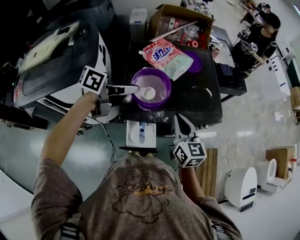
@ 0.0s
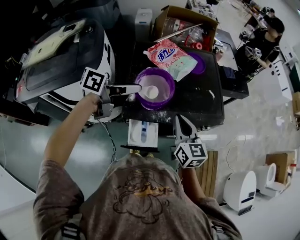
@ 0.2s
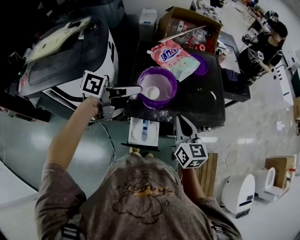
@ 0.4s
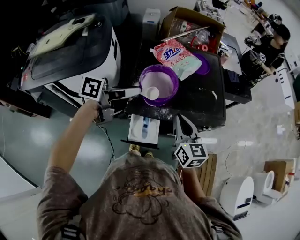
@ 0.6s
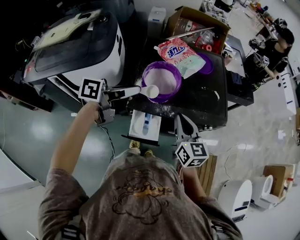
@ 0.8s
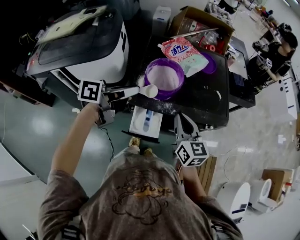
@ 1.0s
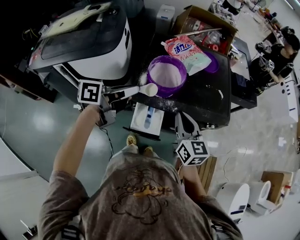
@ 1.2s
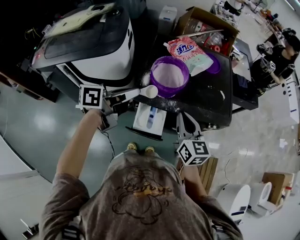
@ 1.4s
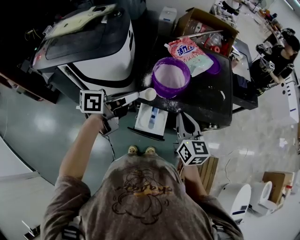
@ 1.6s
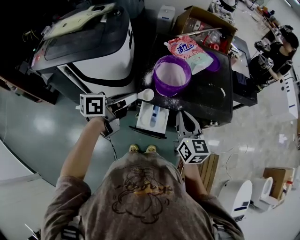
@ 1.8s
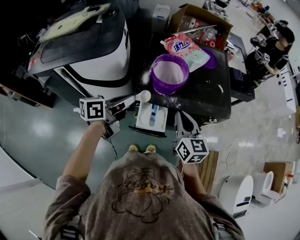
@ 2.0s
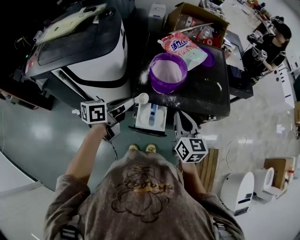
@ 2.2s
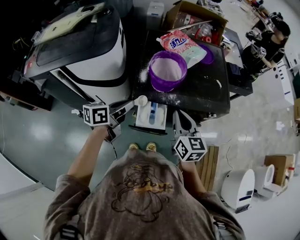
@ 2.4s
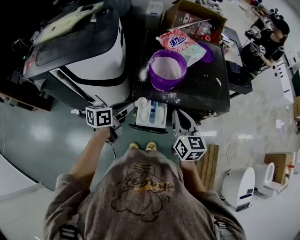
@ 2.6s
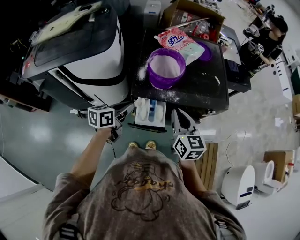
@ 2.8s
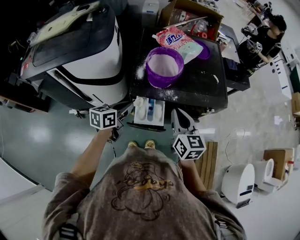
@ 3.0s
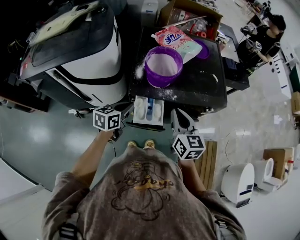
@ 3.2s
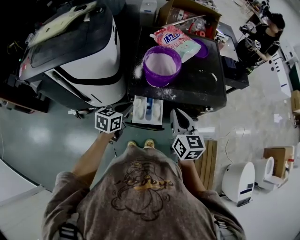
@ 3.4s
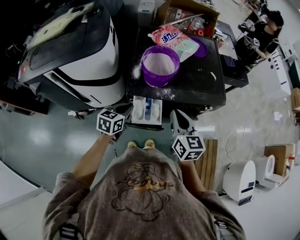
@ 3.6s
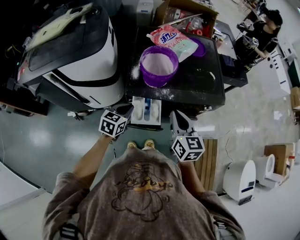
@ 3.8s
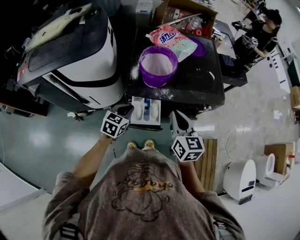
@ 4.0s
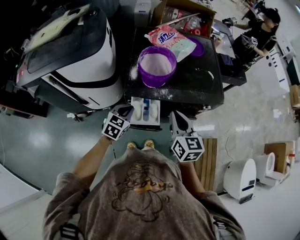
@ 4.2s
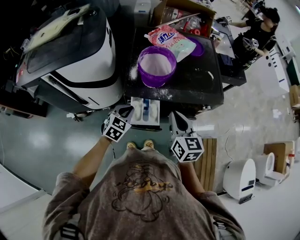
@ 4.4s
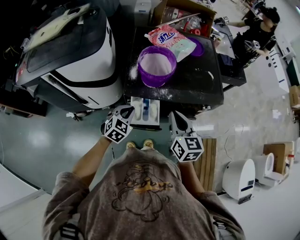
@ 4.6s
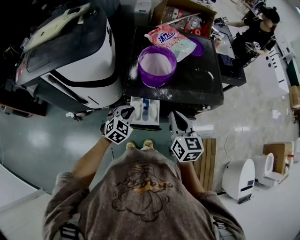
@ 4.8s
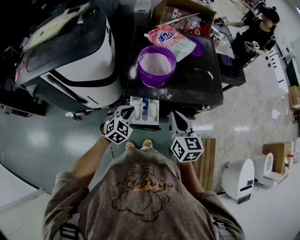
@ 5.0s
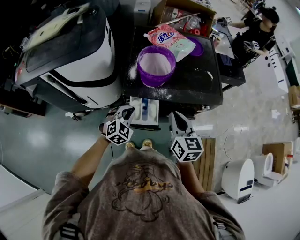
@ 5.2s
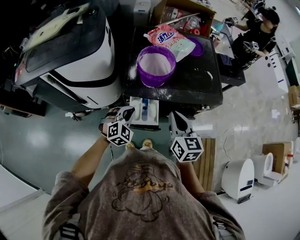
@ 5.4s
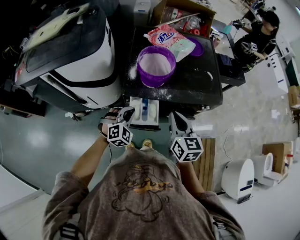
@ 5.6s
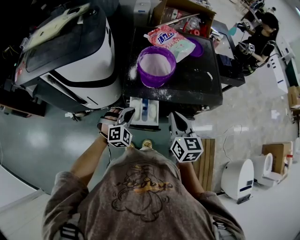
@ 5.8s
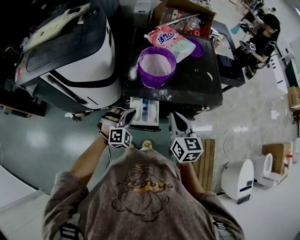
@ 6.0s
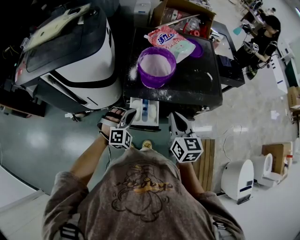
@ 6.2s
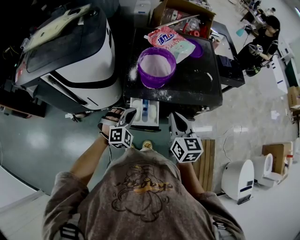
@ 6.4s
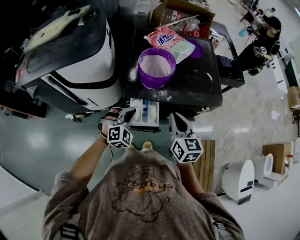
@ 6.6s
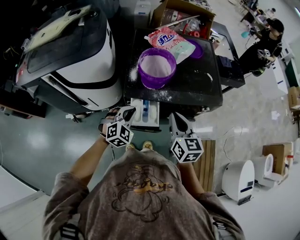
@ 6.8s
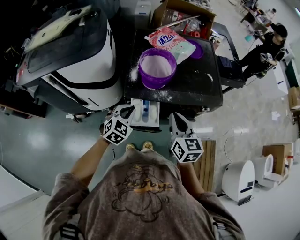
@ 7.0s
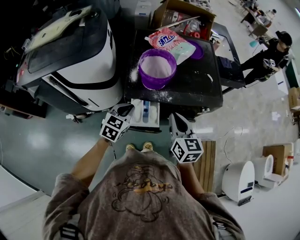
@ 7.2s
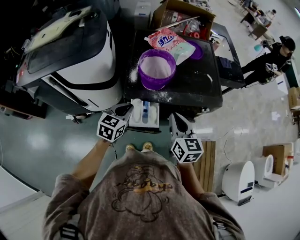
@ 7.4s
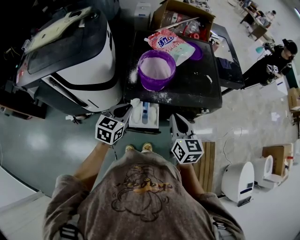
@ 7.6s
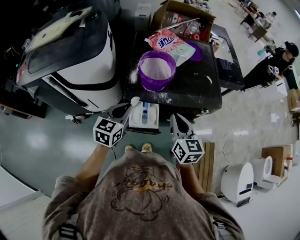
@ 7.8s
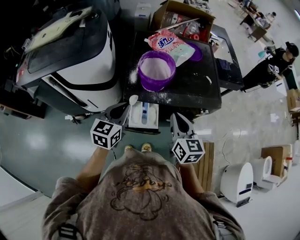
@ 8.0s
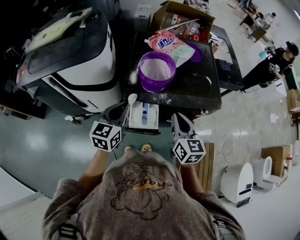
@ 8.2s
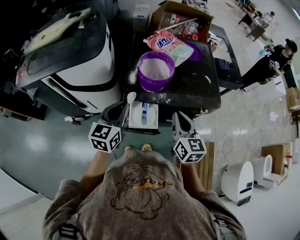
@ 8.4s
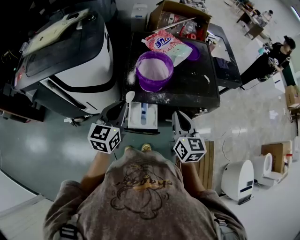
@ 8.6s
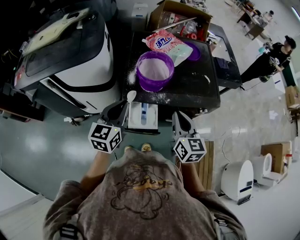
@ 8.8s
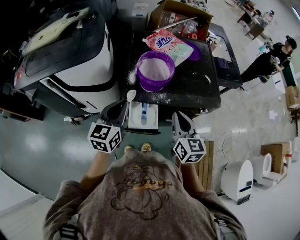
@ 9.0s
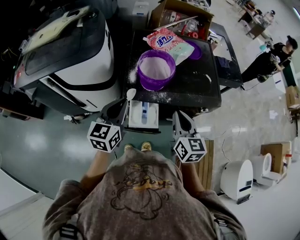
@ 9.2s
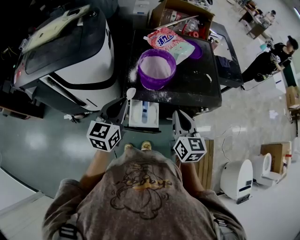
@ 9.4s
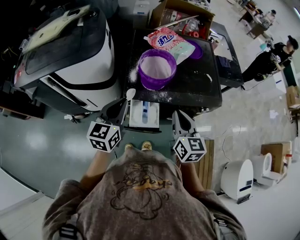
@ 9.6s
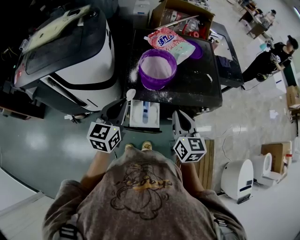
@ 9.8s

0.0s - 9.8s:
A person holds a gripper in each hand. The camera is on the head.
0.0s - 1.4s: The left gripper travels backward by roughly 10 cm, and changes its angle by some 30 degrees. Meanwhile the right gripper is displaced backward by approximately 5 cm.
1.4s - 2.8s: The left gripper is displaced downward by approximately 15 cm.
2.8s - 4.2s: The left gripper moves downward, about 5 cm, and swivels approximately 40 degrees.
4.2s - 5.6s: The left gripper twists approximately 40 degrees clockwise, seen from behind.
5.6s - 7.0s: The left gripper changes its angle by some 20 degrees.
7.0s - 8.4s: The left gripper moves upward, some 10 cm, and turns by some 40 degrees.
8.4s - 9.8s: Both grippers stay about where they are.

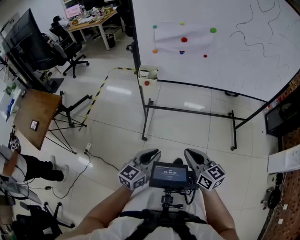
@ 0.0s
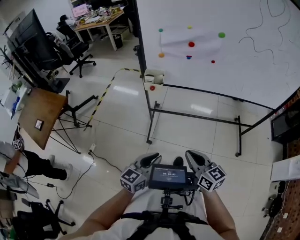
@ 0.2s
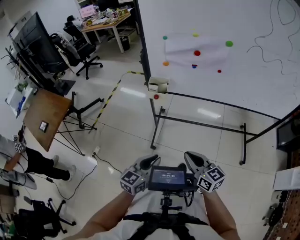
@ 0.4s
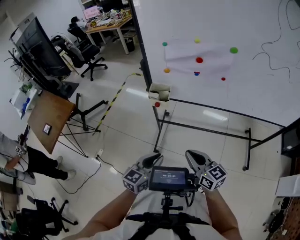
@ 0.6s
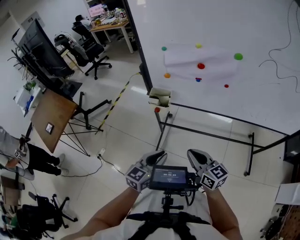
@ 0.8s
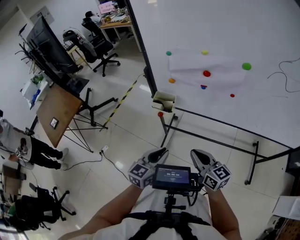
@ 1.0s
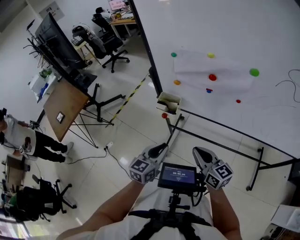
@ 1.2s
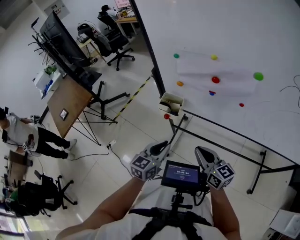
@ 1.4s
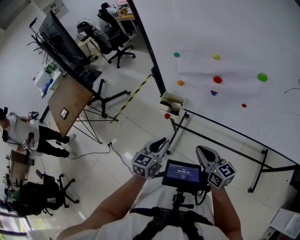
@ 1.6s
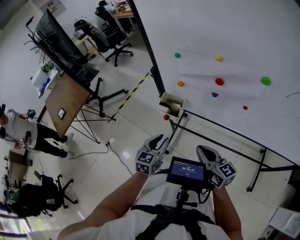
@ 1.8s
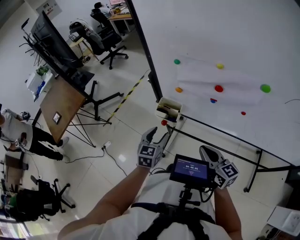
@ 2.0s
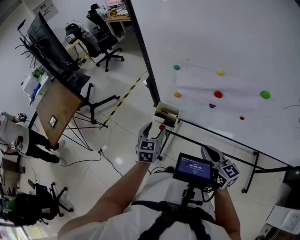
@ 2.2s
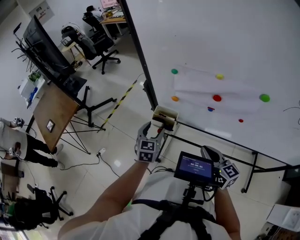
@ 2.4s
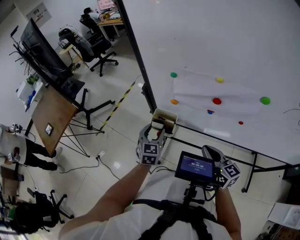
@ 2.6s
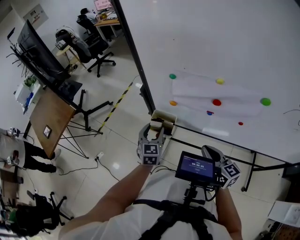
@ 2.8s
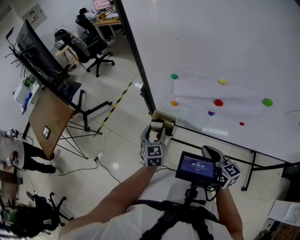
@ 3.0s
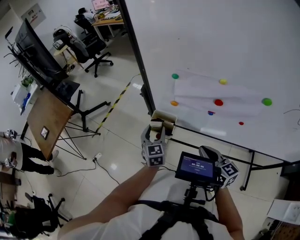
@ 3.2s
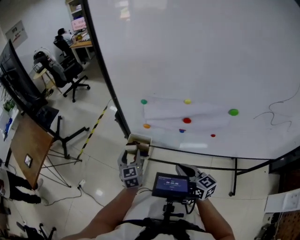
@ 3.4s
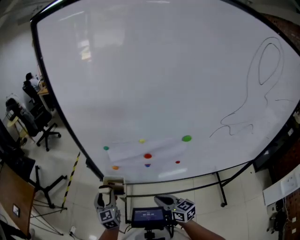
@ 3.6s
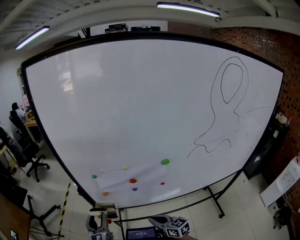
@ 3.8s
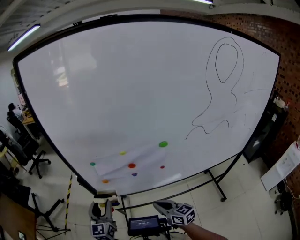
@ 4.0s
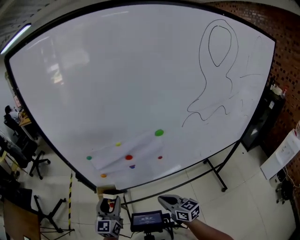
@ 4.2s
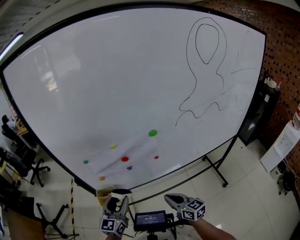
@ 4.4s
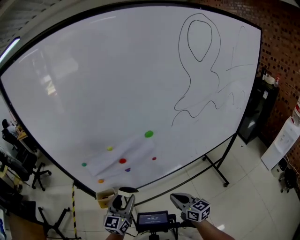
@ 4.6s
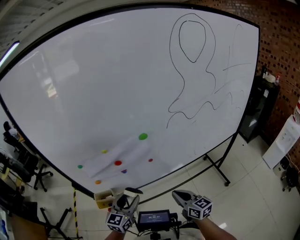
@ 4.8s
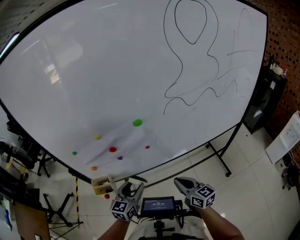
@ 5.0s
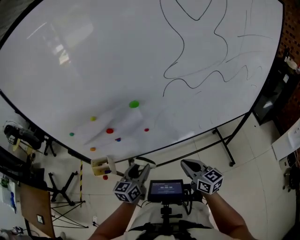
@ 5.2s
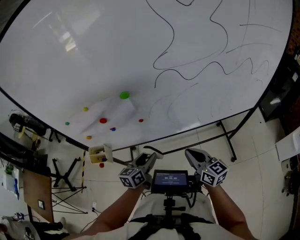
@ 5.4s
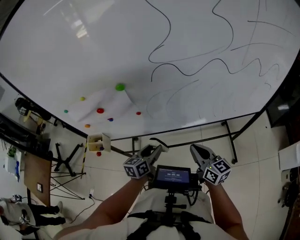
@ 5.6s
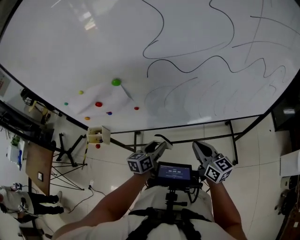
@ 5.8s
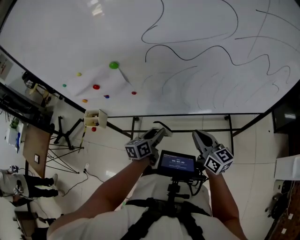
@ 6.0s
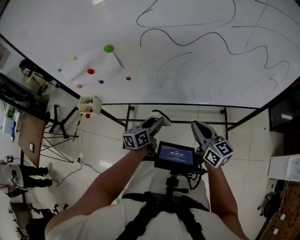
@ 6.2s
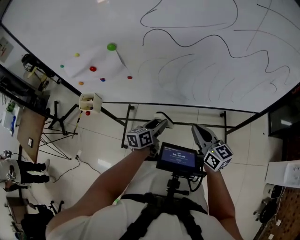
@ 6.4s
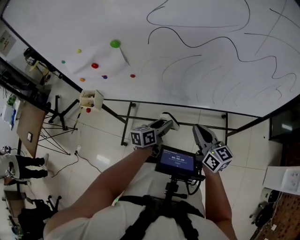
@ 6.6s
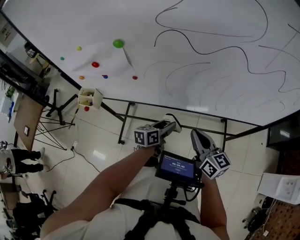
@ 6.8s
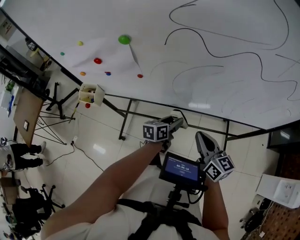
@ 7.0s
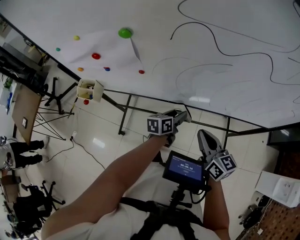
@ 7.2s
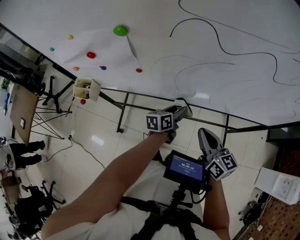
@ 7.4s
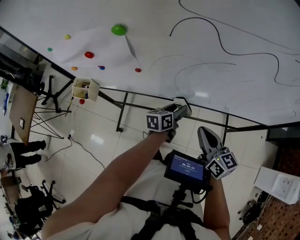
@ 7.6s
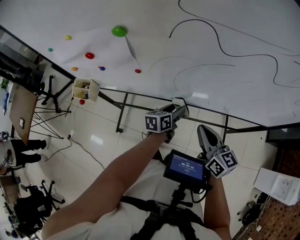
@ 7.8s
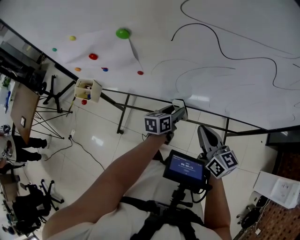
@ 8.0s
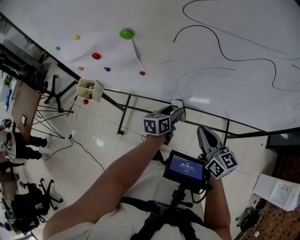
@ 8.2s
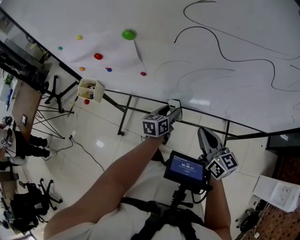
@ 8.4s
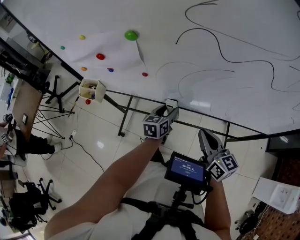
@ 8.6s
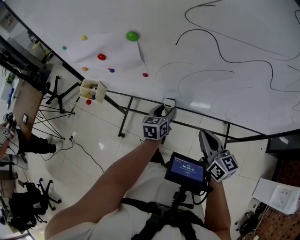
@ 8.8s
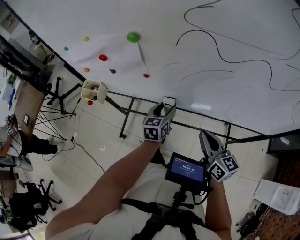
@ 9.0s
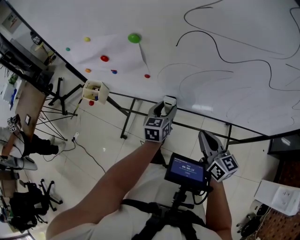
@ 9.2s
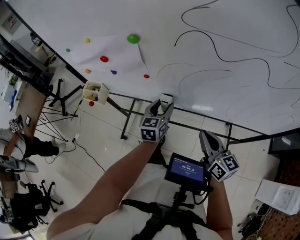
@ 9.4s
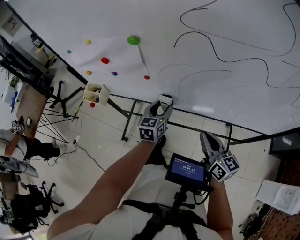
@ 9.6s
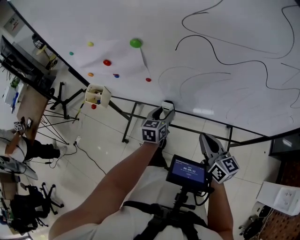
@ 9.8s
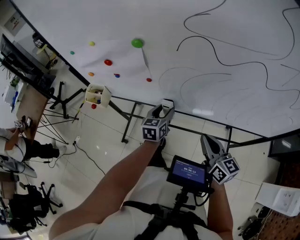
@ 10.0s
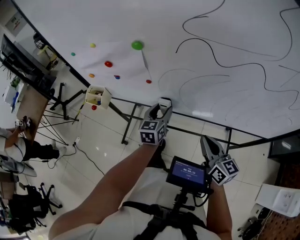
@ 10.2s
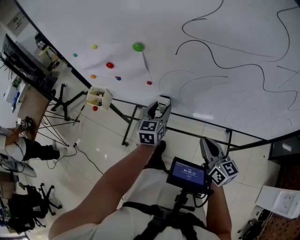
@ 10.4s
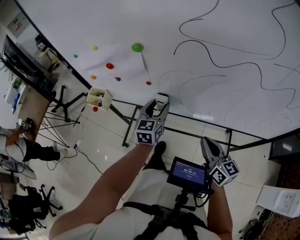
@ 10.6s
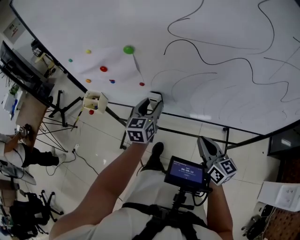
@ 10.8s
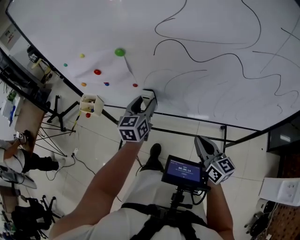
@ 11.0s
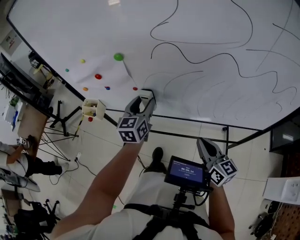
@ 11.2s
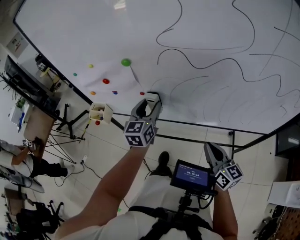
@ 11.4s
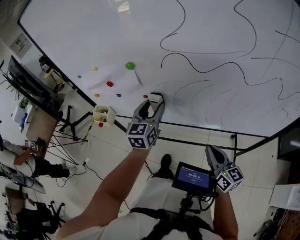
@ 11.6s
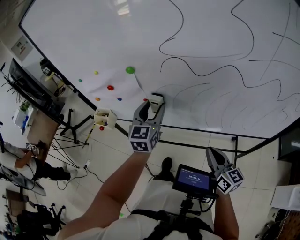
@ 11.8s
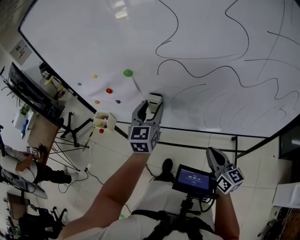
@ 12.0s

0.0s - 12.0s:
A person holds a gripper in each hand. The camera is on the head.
0.0s - 1.6s: Both grippers travel together forward, some 35 cm. The left gripper swivels roughly 30 degrees.
1.6s - 3.0s: The left gripper heads forward, covering some 20 cm, turns by about 20 degrees, and opens its fingers. Meanwhile the right gripper is displaced forward by about 10 cm.
3.0s - 4.4s: The right gripper moves some 15 cm, and changes its angle by approximately 20 degrees, while the left gripper shifts by about 20 cm, and changes its angle by about 50 degrees.
4.4s - 6.0s: The left gripper moves to the right and downward, approximately 40 cm, and swivels about 40 degrees. The right gripper is displaced to the right by roughly 35 cm.
6.0s - 7.6s: The right gripper ends up approximately 5 cm from where it was. The left gripper moves forward, to the right and downward, some 15 cm.
7.6s - 9.0s: The left gripper heads to the left and upward, covering approximately 10 cm, and rotates approximately 30 degrees.
9.0s - 10.4s: The left gripper heads upward, covering approximately 5 cm.
10.4s - 12.0s: The right gripper shifts by about 5 cm, while the left gripper heads upward, covering roughly 15 cm.

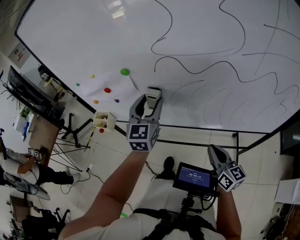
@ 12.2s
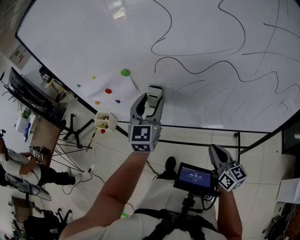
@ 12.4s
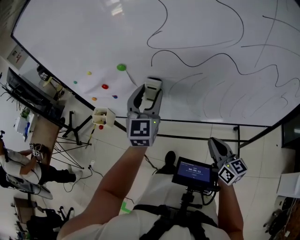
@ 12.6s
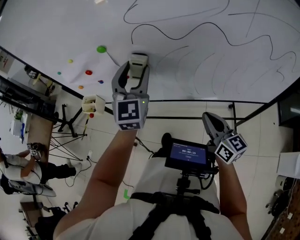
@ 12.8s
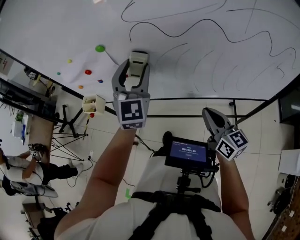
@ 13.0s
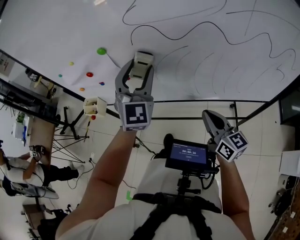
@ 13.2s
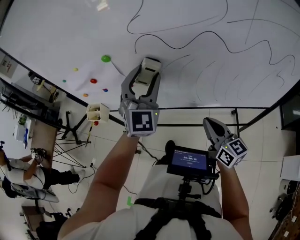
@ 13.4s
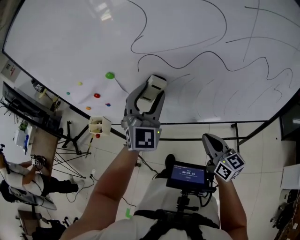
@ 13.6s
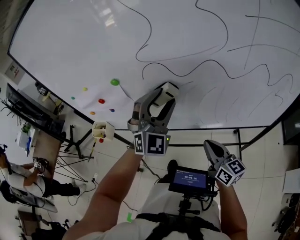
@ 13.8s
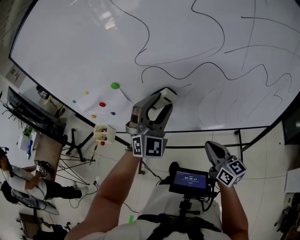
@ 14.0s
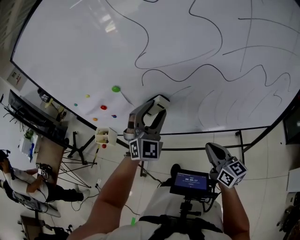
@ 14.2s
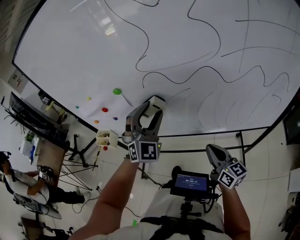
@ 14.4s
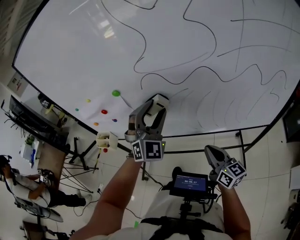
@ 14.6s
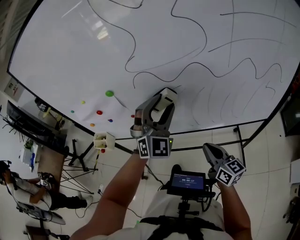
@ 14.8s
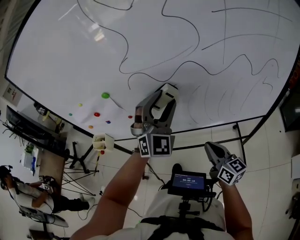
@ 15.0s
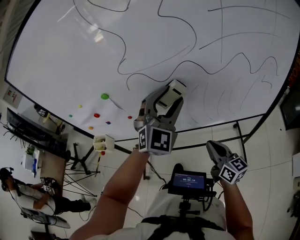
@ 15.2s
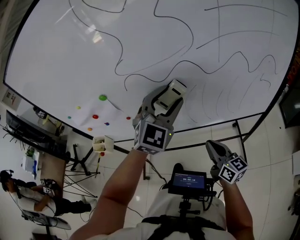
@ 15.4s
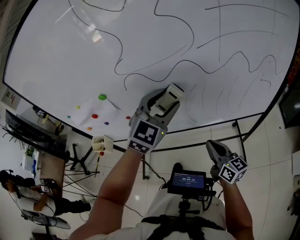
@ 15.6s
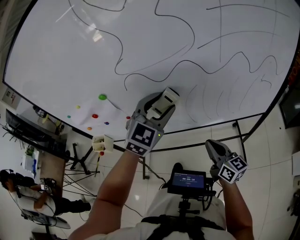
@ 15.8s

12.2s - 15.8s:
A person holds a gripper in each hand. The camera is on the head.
12.2s - 14.0s: The left gripper goes about 10 cm to the right, and rolls clockwise, seen from behind, by about 50 degrees.
14.0s - 15.8s: The left gripper is displaced to the right by some 5 cm, and changes its angle by approximately 30 degrees.
